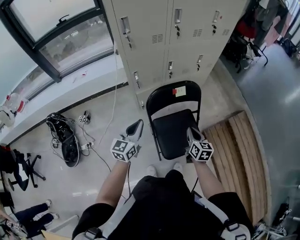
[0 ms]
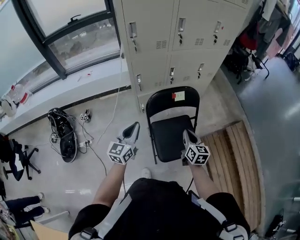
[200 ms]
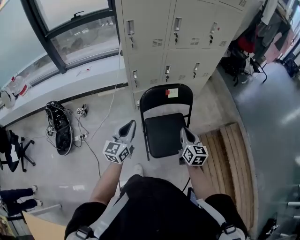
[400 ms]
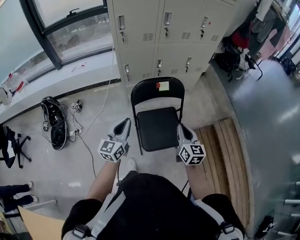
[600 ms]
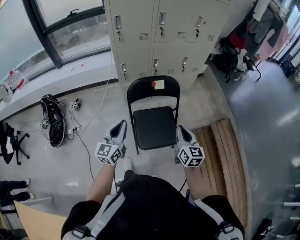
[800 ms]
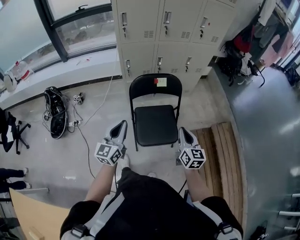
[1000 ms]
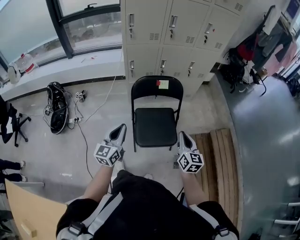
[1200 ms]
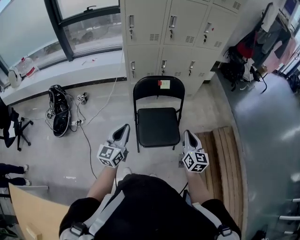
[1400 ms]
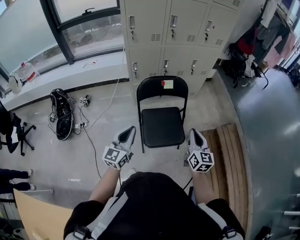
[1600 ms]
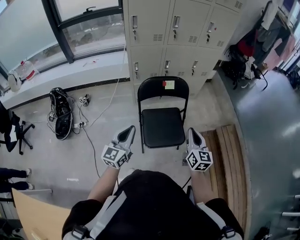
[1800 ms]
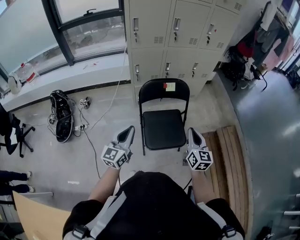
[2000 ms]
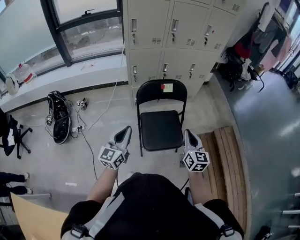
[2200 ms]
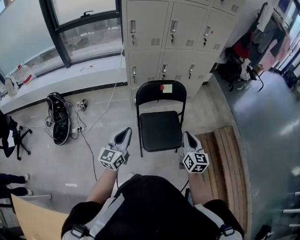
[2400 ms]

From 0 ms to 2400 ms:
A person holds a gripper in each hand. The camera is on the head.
From 0 ms to 1200 ms: The left gripper heads backward and to the right, covering about 20 cm. The right gripper moves backward, to the right and upward, approximately 20 cm.
From 1200 ms to 2400 ms: The right gripper changes place by some 5 cm.

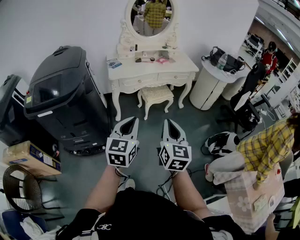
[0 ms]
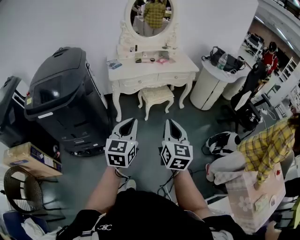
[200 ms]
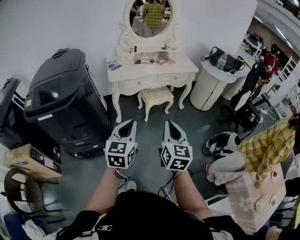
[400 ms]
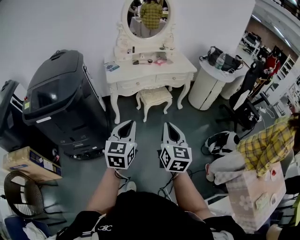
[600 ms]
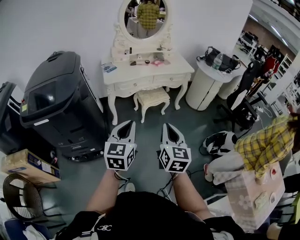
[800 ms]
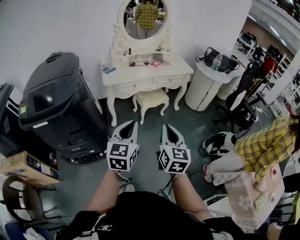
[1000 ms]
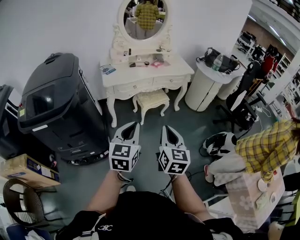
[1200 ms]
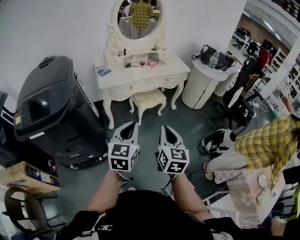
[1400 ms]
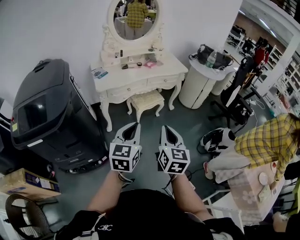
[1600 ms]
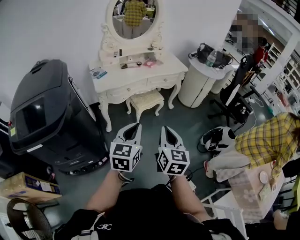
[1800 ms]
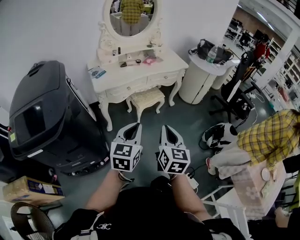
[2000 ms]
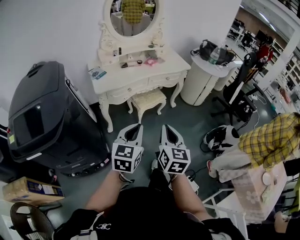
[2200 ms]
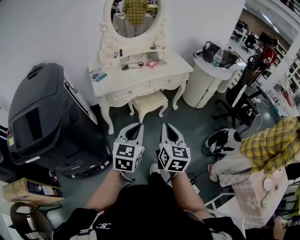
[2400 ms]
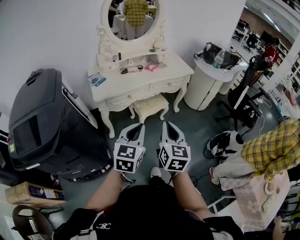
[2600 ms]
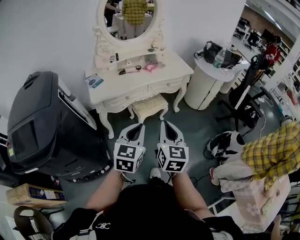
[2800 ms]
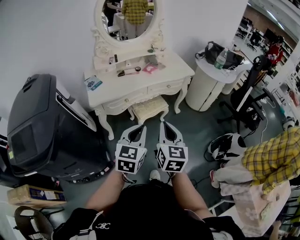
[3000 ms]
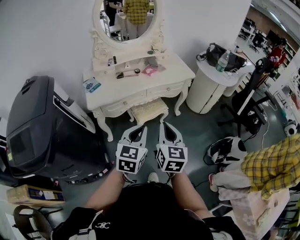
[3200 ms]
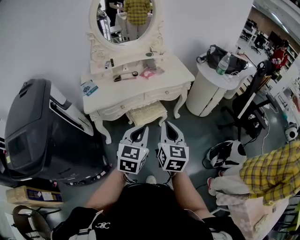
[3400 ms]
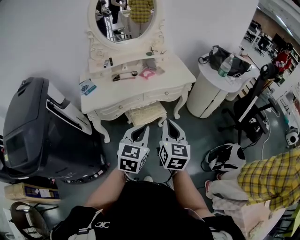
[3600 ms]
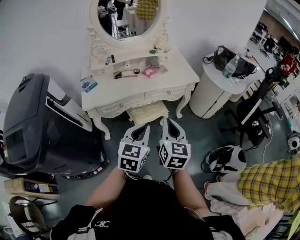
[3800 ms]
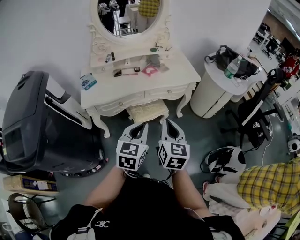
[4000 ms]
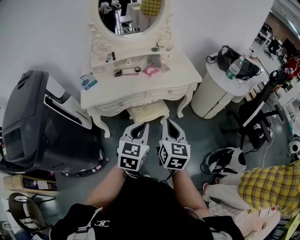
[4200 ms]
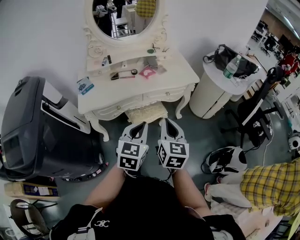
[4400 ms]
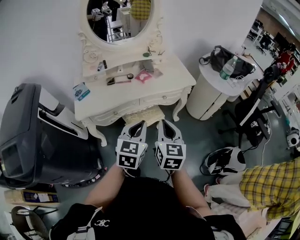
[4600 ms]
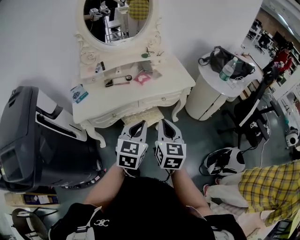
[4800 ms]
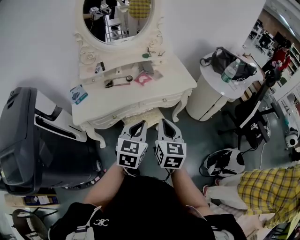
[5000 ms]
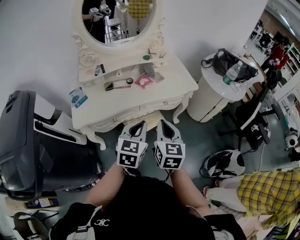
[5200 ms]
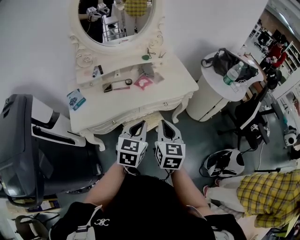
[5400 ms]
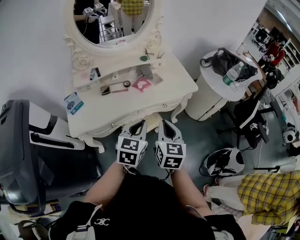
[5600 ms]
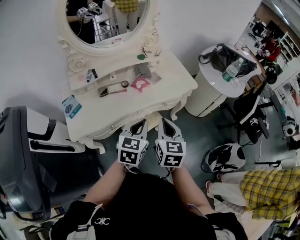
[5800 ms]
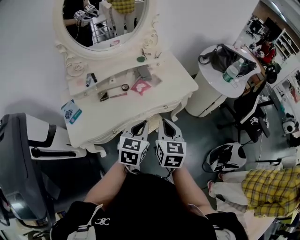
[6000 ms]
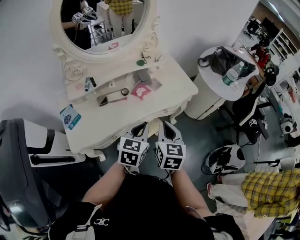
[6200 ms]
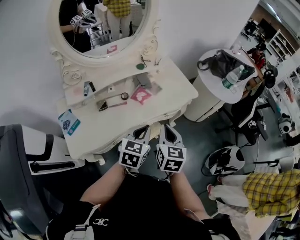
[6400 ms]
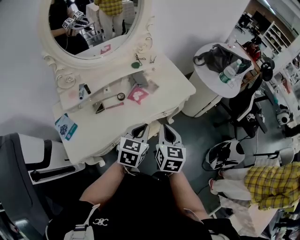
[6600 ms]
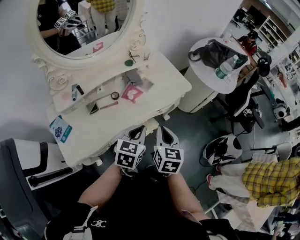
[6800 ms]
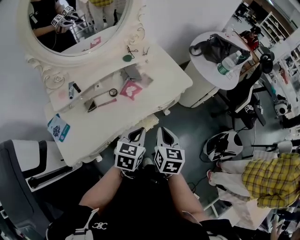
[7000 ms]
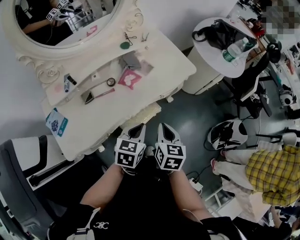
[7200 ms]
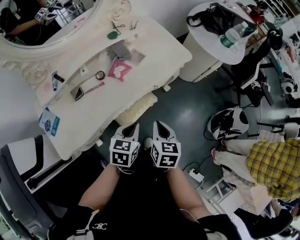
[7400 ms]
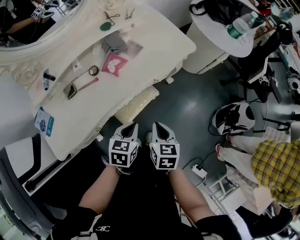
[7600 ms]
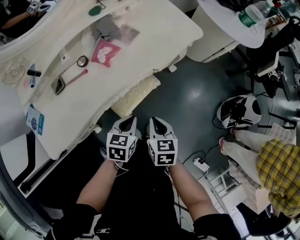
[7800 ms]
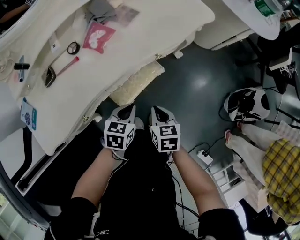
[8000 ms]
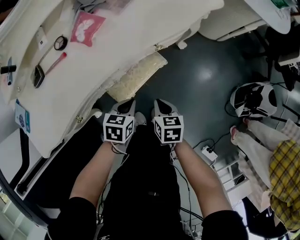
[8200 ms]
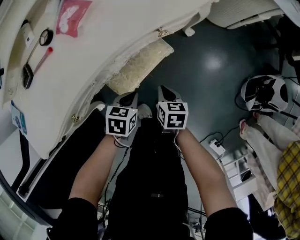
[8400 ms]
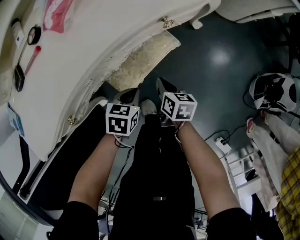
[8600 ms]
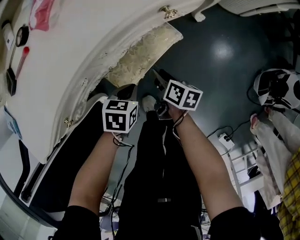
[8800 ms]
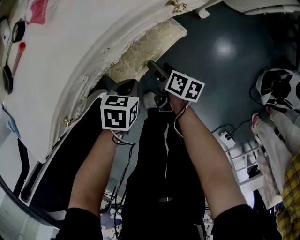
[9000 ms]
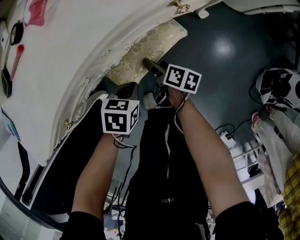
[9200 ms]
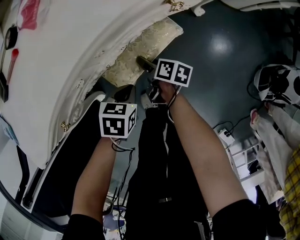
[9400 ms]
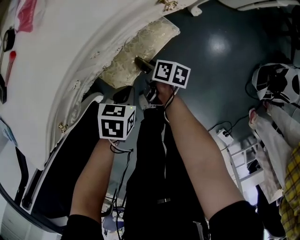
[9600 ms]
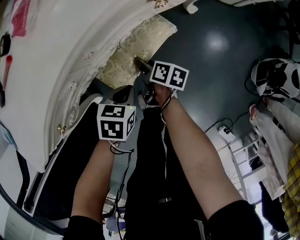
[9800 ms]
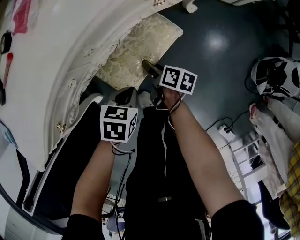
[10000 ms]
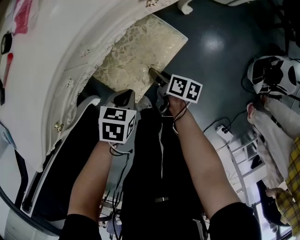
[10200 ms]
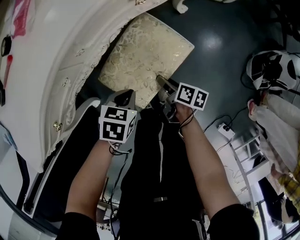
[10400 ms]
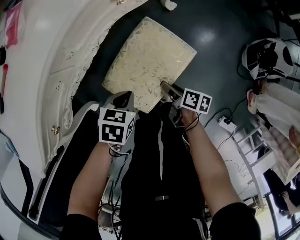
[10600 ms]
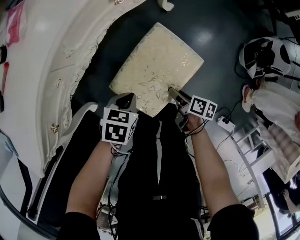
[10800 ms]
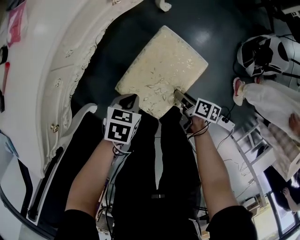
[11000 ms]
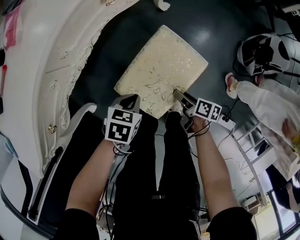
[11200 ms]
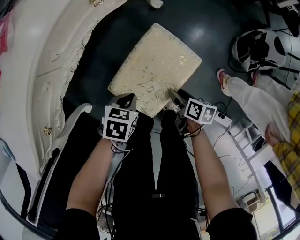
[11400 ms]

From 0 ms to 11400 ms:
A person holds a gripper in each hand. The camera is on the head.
From 0 ms to 1400 ms: The right gripper changes place by approximately 5 cm; the left gripper moves forward, approximately 5 cm.
From 1400 ms to 2800 ms: The two grippers go some 15 cm forward.
From 2800 ms to 4200 ms: The left gripper moves forward and to the right, about 20 cm. Meanwhile the right gripper moves forward, some 20 cm.
From 4200 ms to 5600 ms: Both grippers move forward, approximately 15 cm.
From 5600 ms to 7200 ms: Both grippers move downward and forward, about 10 cm. The right gripper swivels about 20 degrees; the left gripper changes its angle by approximately 20 degrees.
From 7200 ms to 8600 ms: The two grippers go about 40 cm downward. The right gripper changes its angle by roughly 40 degrees. The left gripper points its fingers about 30 degrees further downward.
From 8600 ms to 10000 ms: The right gripper moves downward, about 5 cm, changes its angle by roughly 20 degrees, and opens its fingers.
From 10000 ms to 11400 ms: The right gripper moves to the right and backward, about 25 cm. The left gripper shifts some 10 cm to the right and backward.

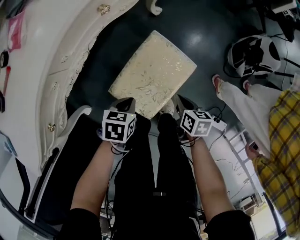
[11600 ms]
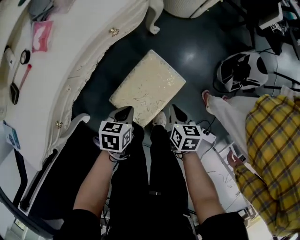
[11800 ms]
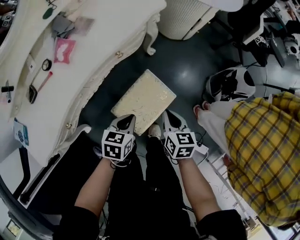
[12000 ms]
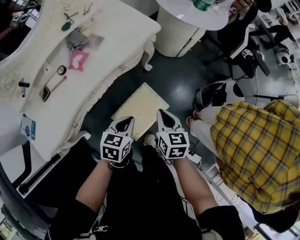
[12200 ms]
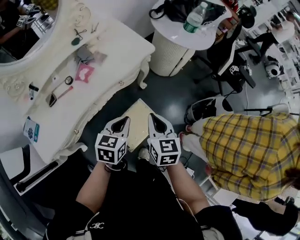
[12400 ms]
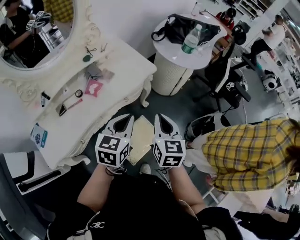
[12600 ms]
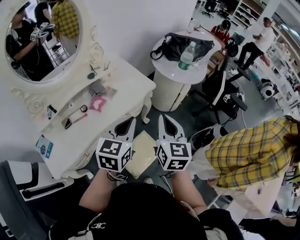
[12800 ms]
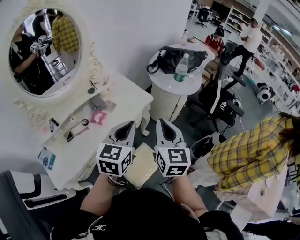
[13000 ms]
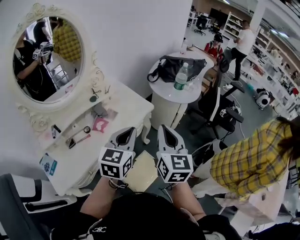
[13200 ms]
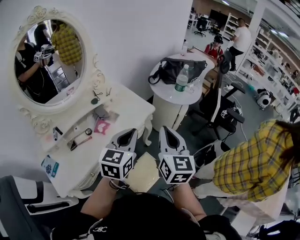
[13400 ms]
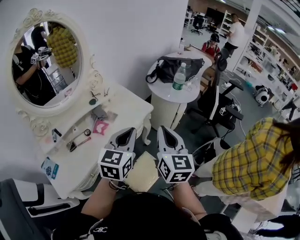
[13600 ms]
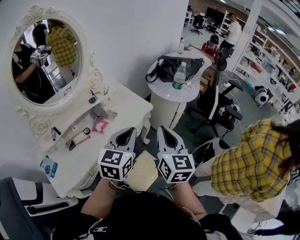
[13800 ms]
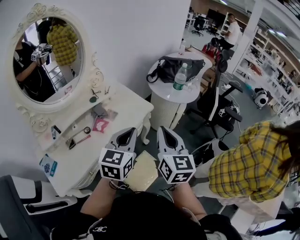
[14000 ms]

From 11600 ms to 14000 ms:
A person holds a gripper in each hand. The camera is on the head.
From 11600 ms to 12800 ms: The grippers both shift upward by about 60 cm. The left gripper angles its fingers upward, by approximately 50 degrees, while the right gripper points its fingers about 40 degrees further upward.
From 12800 ms to 14000 ms: The right gripper shifts some 5 cm upward.

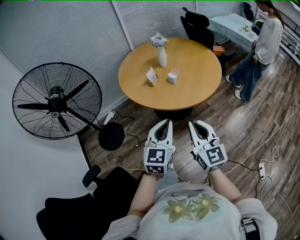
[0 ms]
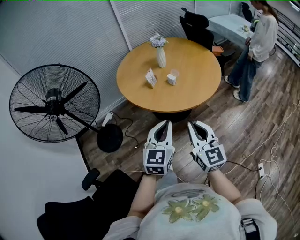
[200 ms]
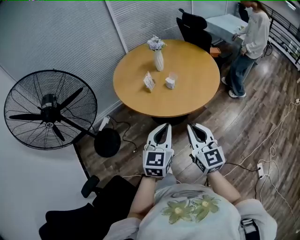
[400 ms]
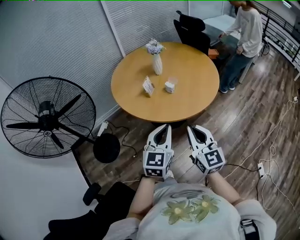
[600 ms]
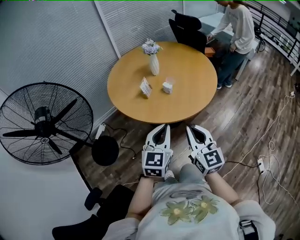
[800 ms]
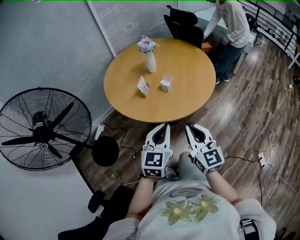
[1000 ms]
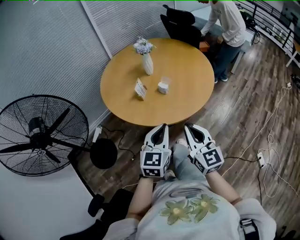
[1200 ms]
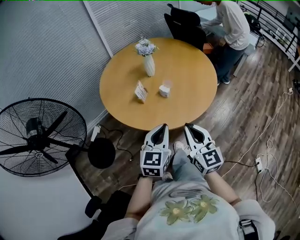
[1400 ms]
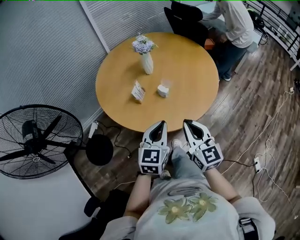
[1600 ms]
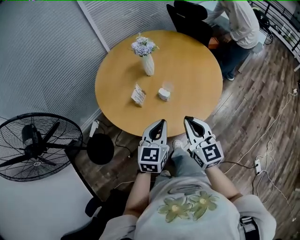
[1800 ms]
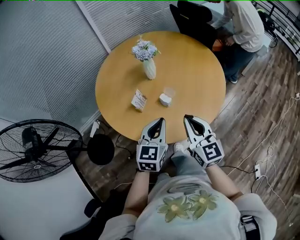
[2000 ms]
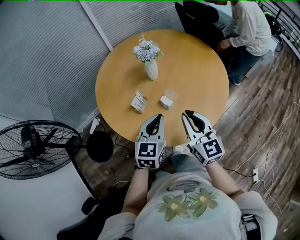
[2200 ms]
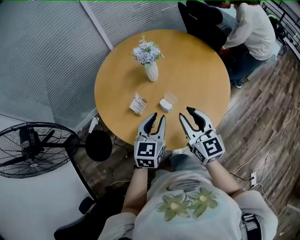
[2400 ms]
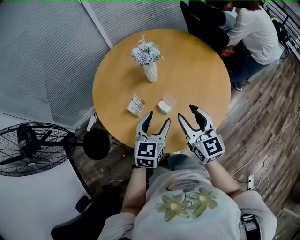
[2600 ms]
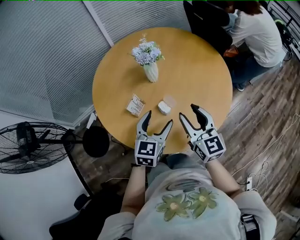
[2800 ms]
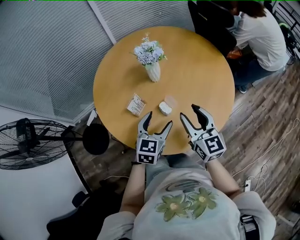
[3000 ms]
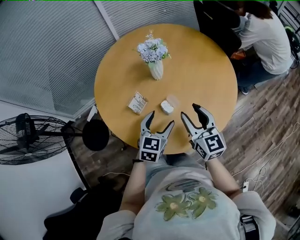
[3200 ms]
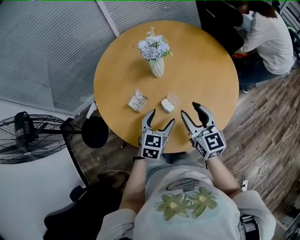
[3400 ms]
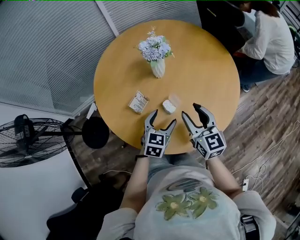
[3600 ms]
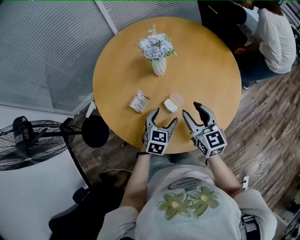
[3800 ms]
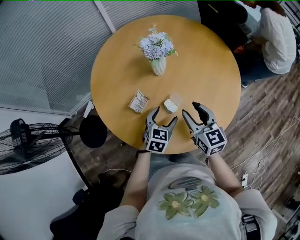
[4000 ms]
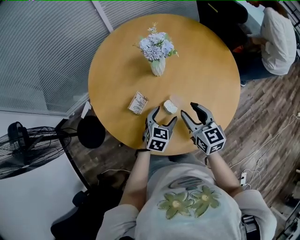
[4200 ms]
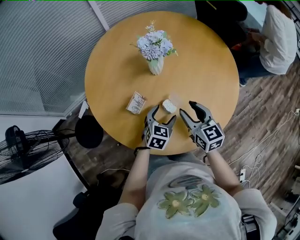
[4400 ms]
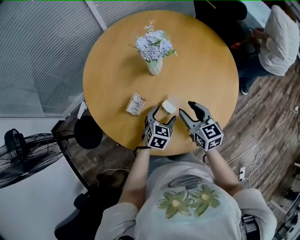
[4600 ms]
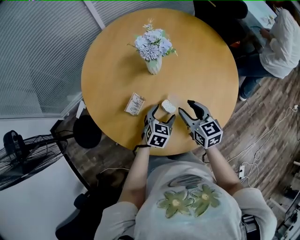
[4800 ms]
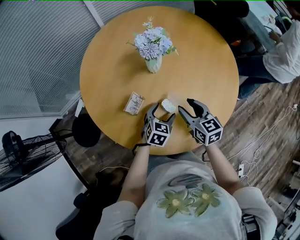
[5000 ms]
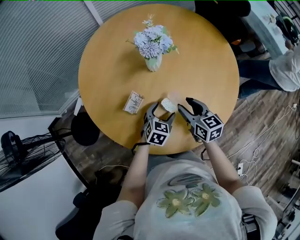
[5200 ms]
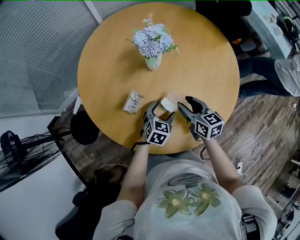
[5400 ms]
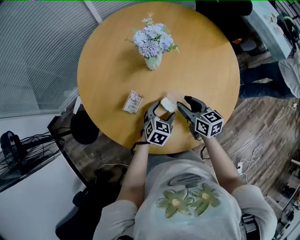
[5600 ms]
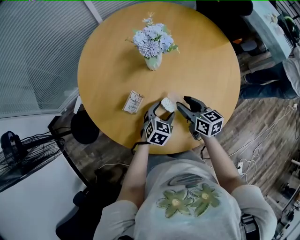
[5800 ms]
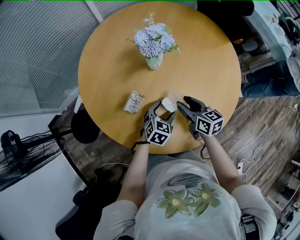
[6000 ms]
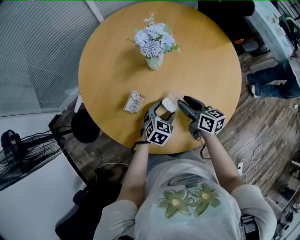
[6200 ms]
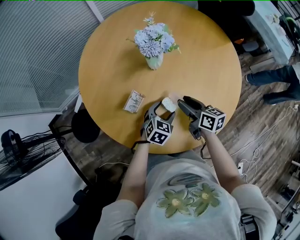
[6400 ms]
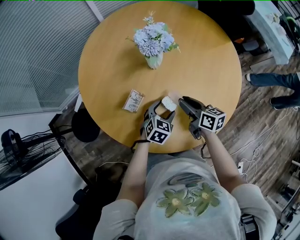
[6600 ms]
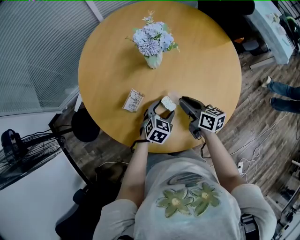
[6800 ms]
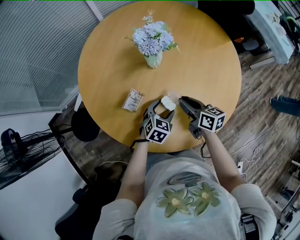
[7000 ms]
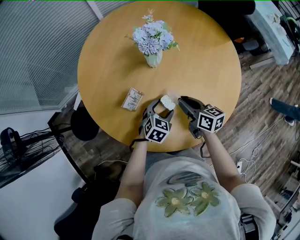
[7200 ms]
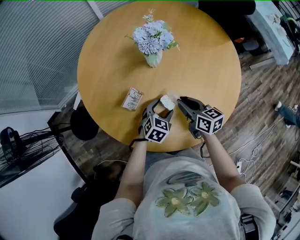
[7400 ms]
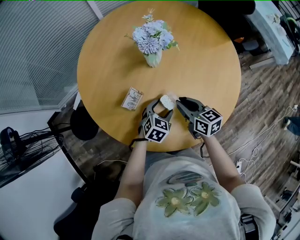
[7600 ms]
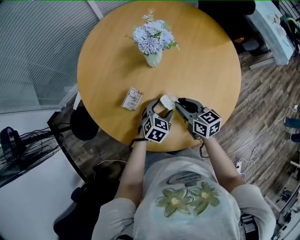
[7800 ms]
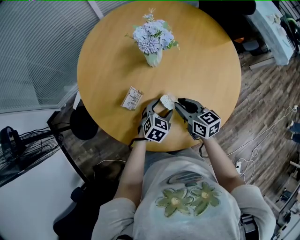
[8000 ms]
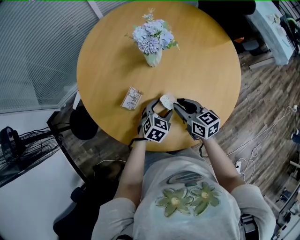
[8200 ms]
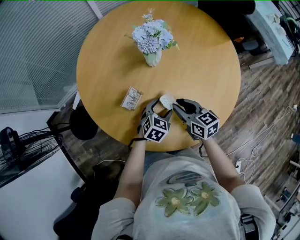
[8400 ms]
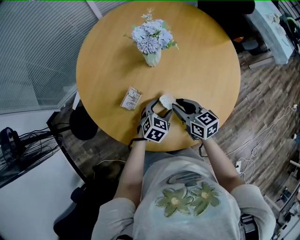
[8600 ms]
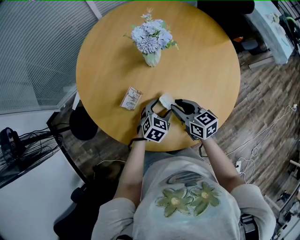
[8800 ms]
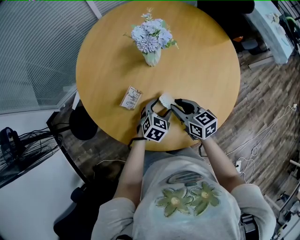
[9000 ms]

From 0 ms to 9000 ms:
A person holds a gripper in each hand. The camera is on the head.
From 0 ms to 1600 ms: The grippers both shift forward by about 20 cm.
From 1600 ms to 3000 ms: The left gripper heads forward and downward, covering approximately 20 cm, and opens, while the right gripper heads forward, covering roughly 25 cm, and opens.
From 3000 ms to 4400 ms: The left gripper is displaced downward by some 15 cm, while the right gripper goes some 10 cm downward and forward.
From 4400 ms to 6000 ms: The right gripper travels downward by roughly 10 cm, and turns by some 20 degrees.
From 6000 ms to 7600 ms: The right gripper closes its fingers.
From 7600 ms to 9000 ms: The grippers make only small movements.
